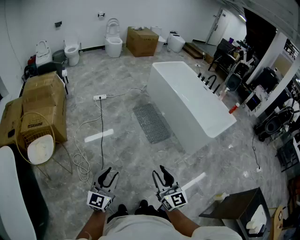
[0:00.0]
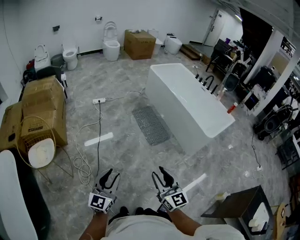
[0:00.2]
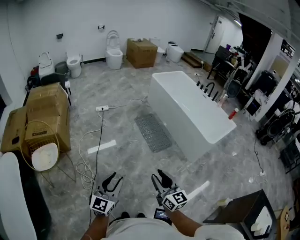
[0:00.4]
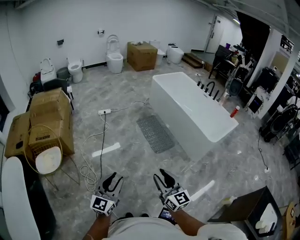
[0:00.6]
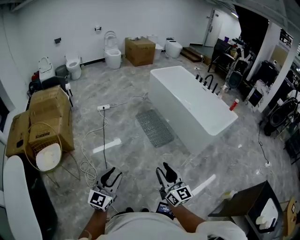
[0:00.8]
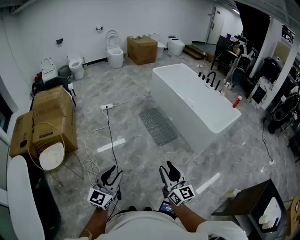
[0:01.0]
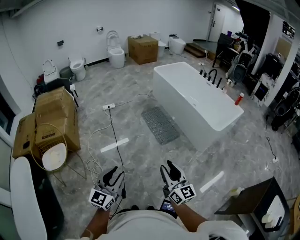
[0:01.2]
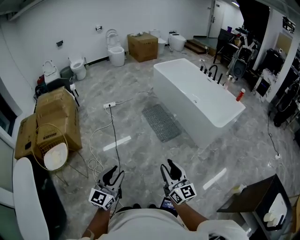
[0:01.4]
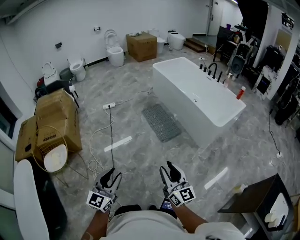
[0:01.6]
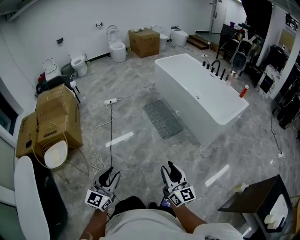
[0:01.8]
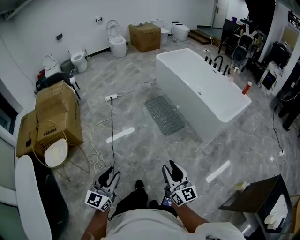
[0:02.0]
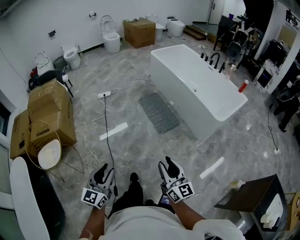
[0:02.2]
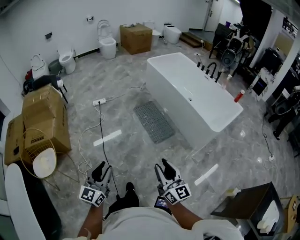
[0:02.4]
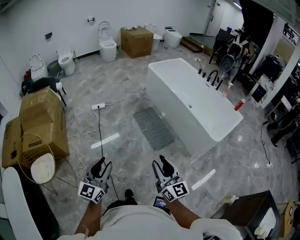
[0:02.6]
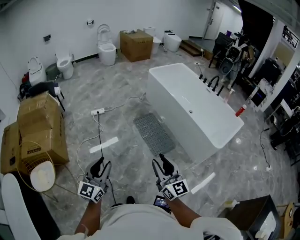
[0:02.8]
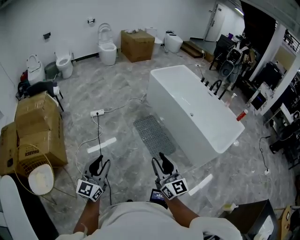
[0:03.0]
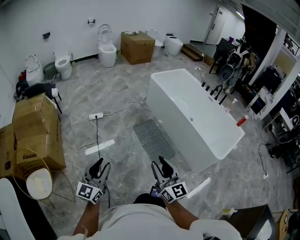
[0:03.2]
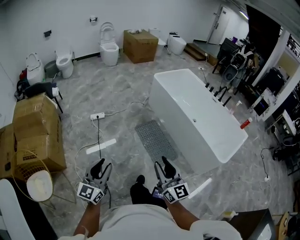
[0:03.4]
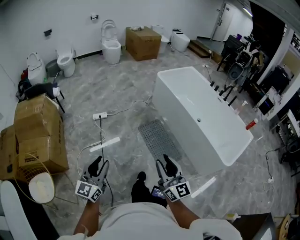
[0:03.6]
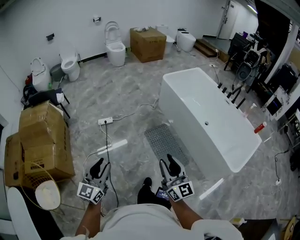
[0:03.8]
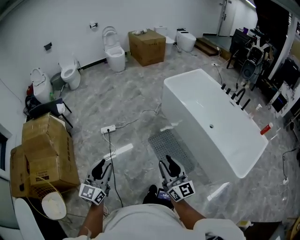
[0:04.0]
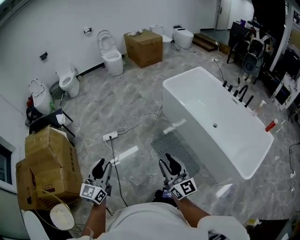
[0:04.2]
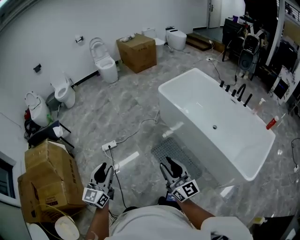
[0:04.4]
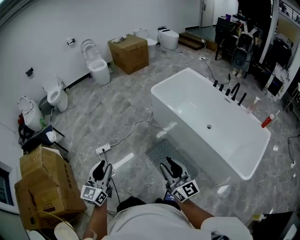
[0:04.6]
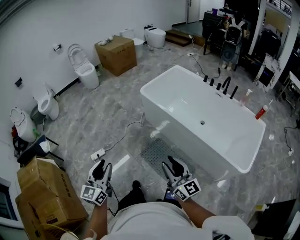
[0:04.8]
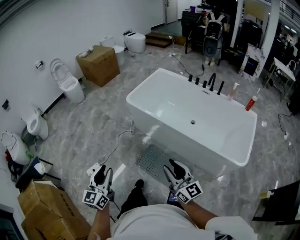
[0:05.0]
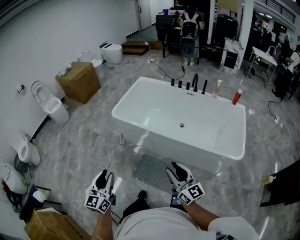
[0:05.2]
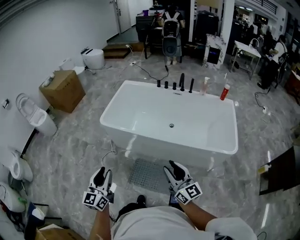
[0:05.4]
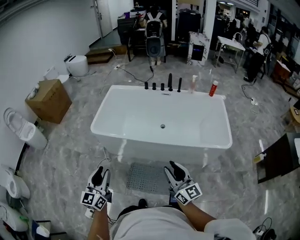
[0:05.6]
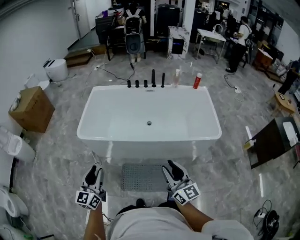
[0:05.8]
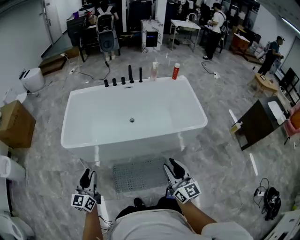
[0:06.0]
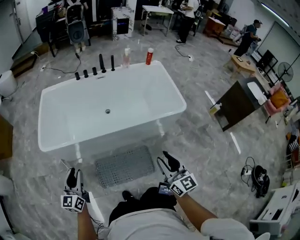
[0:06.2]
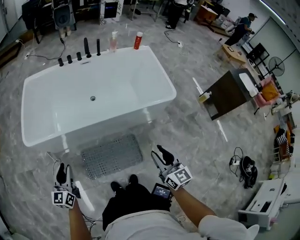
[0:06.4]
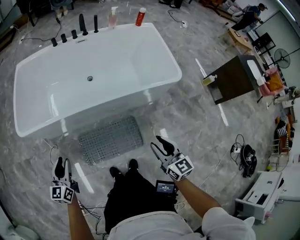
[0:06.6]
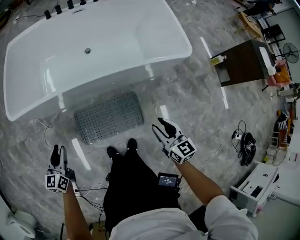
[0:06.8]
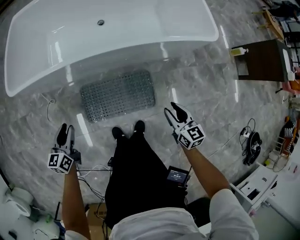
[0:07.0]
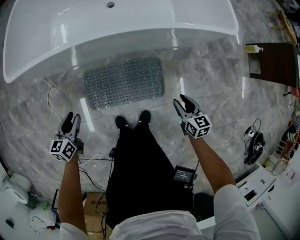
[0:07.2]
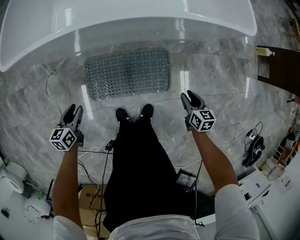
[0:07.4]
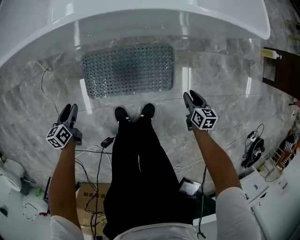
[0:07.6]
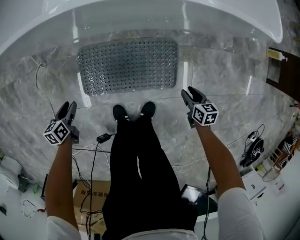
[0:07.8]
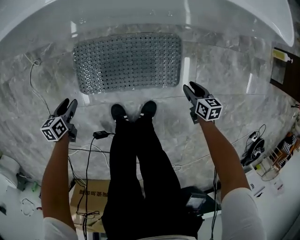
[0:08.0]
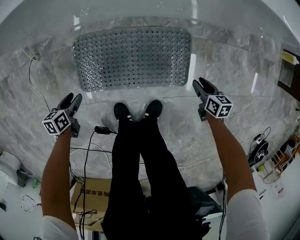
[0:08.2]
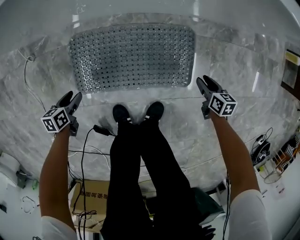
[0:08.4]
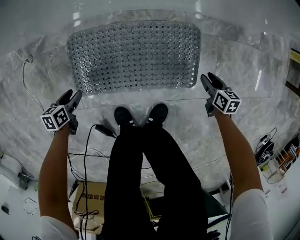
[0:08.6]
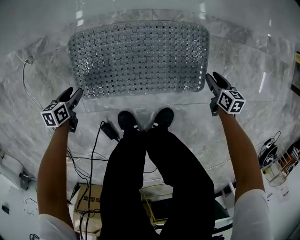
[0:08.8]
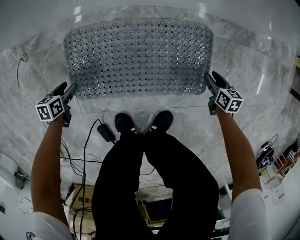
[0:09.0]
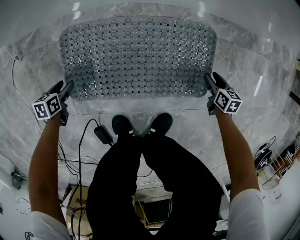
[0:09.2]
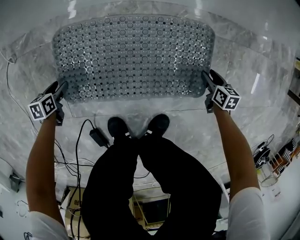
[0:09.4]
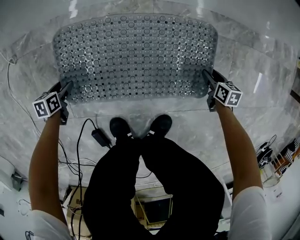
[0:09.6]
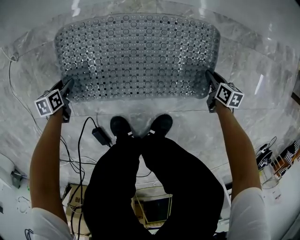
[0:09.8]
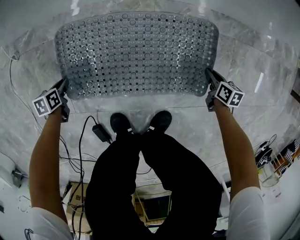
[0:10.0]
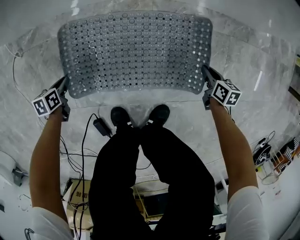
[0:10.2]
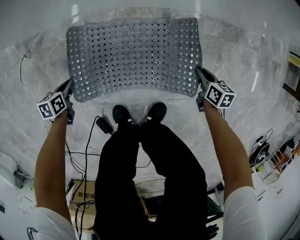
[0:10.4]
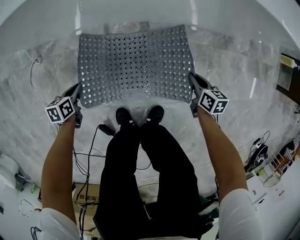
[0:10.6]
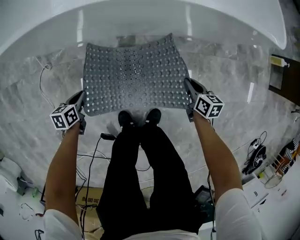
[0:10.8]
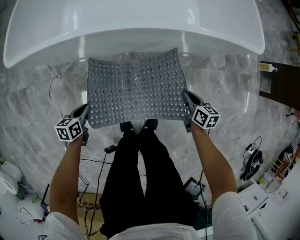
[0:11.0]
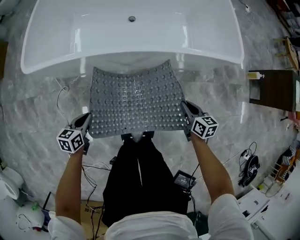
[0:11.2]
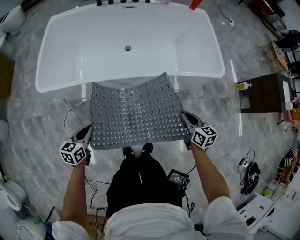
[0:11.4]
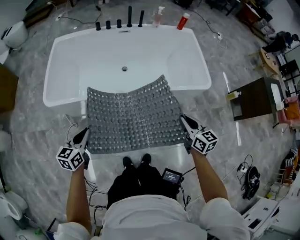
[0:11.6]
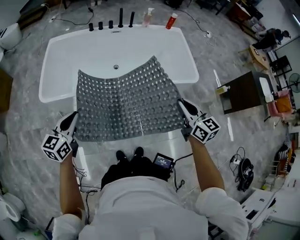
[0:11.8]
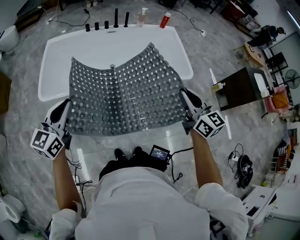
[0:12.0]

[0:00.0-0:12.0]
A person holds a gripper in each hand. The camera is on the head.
0:00.0 to 0:01.6: The left gripper is displaced to the right and backward by approximately 10 cm, while the right gripper is displaced to the right by some 10 cm.
0:01.6 to 0:03.0: Both grippers move forward, approximately 35 cm.
0:03.0 to 0:04.4: The two grippers travel together, forward, roughly 40 cm.
0:04.4 to 0:06.0: The left gripper changes place by about 50 cm, and swivels roughly 60 degrees. Meanwhile the right gripper changes place by approximately 20 cm, and turns by roughly 70 degrees.
0:06.0 to 0:07.6: The two grippers go about 60 cm downward. The right gripper points its fingers roughly 60 degrees further downward, while the left gripper points its fingers some 40 degrees further downward.
0:07.6 to 0:09.0: The grippers both shift downward by some 35 cm. The left gripper rotates roughly 20 degrees.
0:09.0 to 0:10.4: The left gripper heads upward, covering some 5 cm, and closes, while the right gripper goes roughly 10 cm upward and to the left, and closes.
0:10.4 to 0:12.0: The grippers both shift upward by approximately 1 m. The left gripper angles its fingers upward, by approximately 60 degrees. Meanwhile the right gripper tips its fingers upward by some 50 degrees.

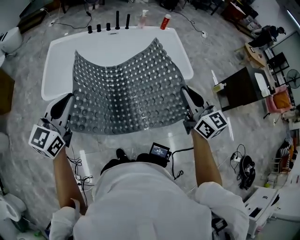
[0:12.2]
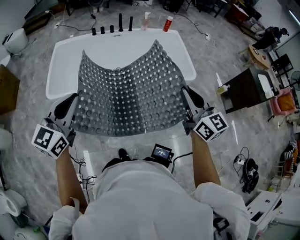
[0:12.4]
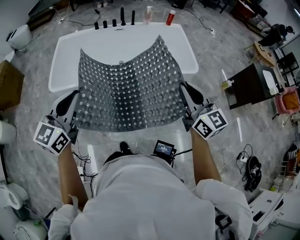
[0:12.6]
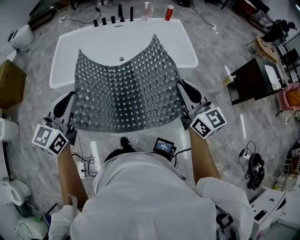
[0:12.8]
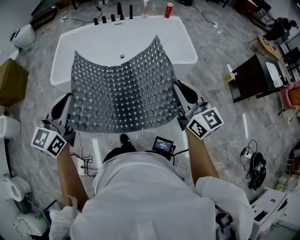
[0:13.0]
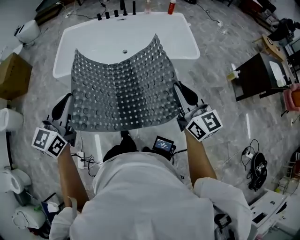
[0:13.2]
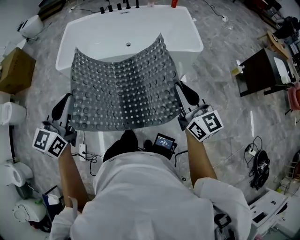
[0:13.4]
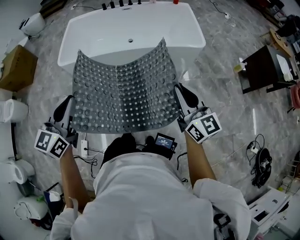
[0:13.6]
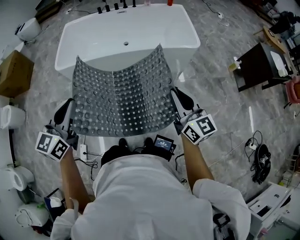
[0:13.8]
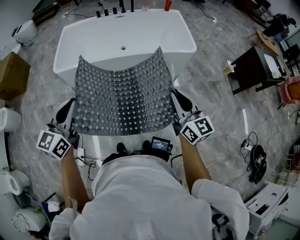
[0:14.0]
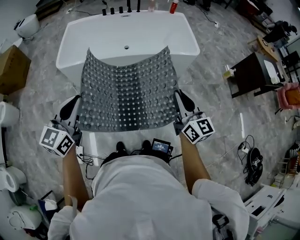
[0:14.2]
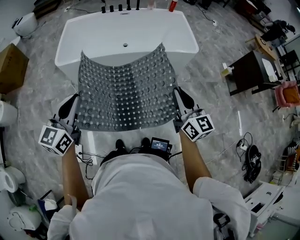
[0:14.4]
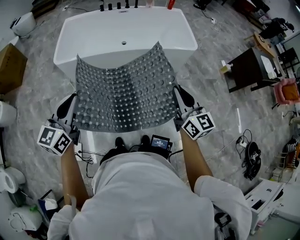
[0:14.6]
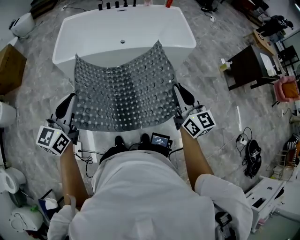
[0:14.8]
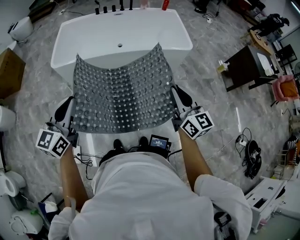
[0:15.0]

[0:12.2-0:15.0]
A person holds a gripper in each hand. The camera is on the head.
0:12.2 to 0:13.6: Both grippers move backward, approximately 20 cm.
0:13.6 to 0:15.0: The left gripper shifts roughly 5 cm to the left; the right gripper moves backward, about 5 cm.

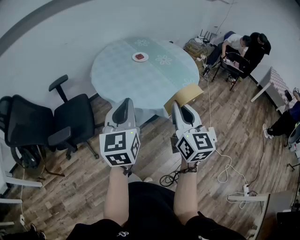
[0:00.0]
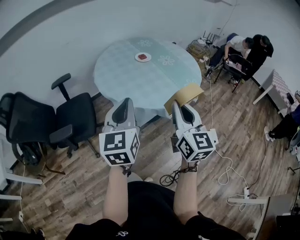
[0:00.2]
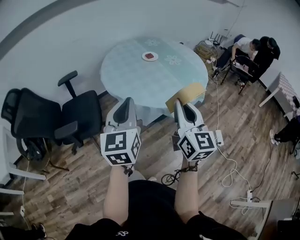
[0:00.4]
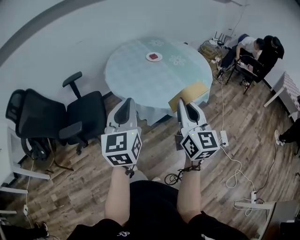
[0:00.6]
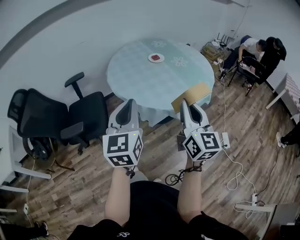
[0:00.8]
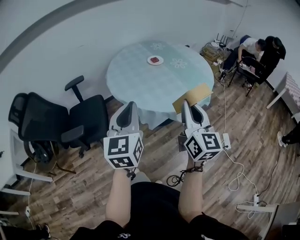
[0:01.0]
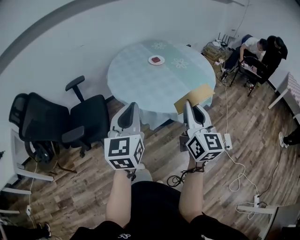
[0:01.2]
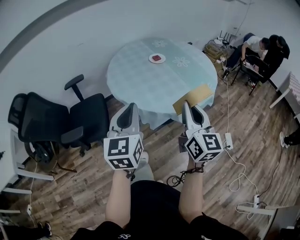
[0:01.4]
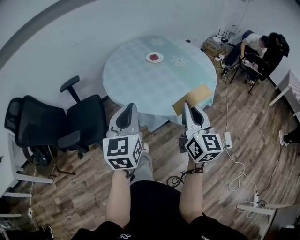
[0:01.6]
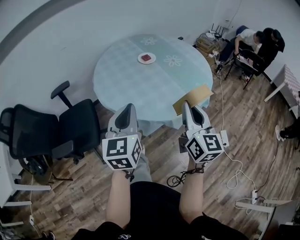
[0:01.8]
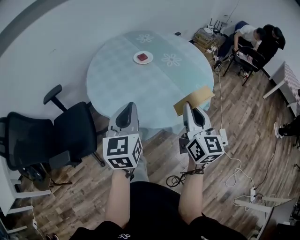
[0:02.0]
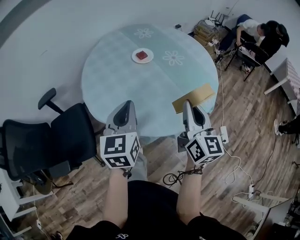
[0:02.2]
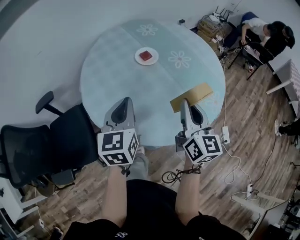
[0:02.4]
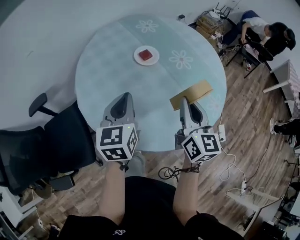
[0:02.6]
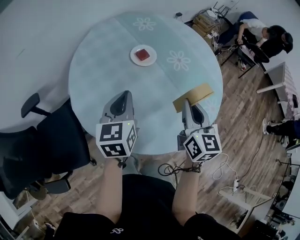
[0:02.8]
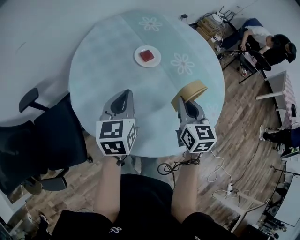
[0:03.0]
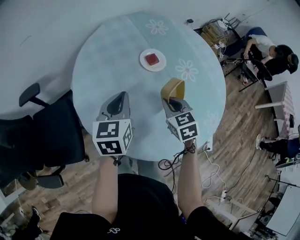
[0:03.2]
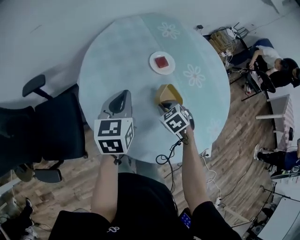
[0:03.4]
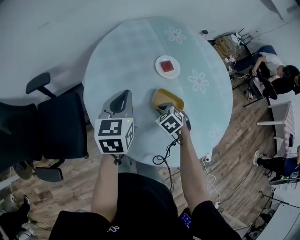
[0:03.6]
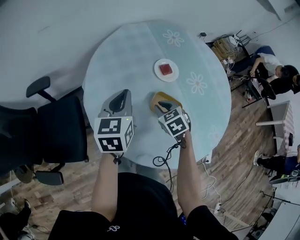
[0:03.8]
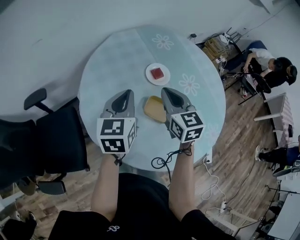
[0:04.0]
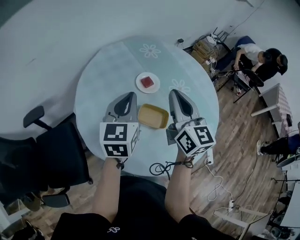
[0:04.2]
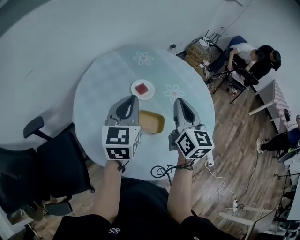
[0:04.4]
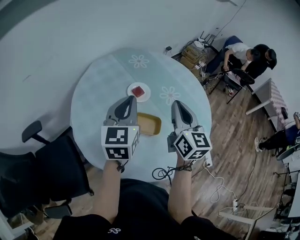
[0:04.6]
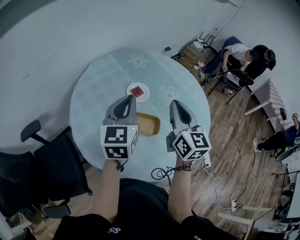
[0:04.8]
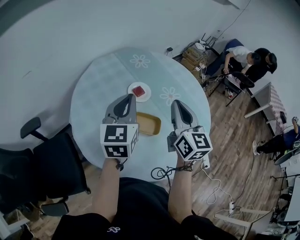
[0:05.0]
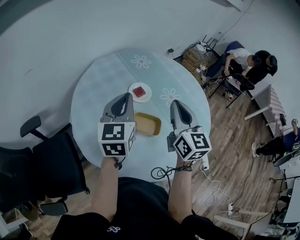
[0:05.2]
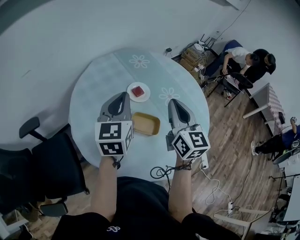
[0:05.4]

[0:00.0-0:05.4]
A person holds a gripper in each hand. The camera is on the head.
0:00.0 to 0:01.4: The right gripper moves some 5 cm.
0:01.4 to 0:02.8: The two grippers travel together, forward, some 50 cm. The right gripper changes its angle by about 20 degrees. Meanwhile the left gripper turns by about 20 degrees.
0:02.8 to 0:04.0: The left gripper heads forward and to the left, covering about 10 cm; the right gripper travels forward and to the left by approximately 20 cm, moves some 25 cm downward and comes back, and turns by some 30 degrees.
0:04.0 to 0:05.4: The right gripper heads upward and to the right, covering roughly 15 cm, and changes its angle by some 20 degrees, while the left gripper goes some 10 cm upward.

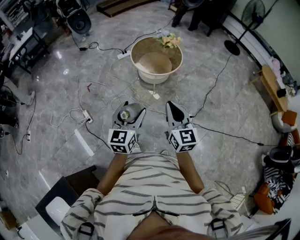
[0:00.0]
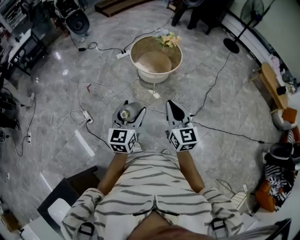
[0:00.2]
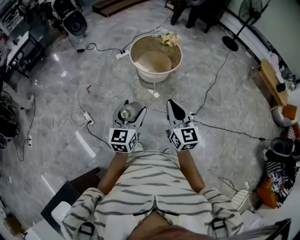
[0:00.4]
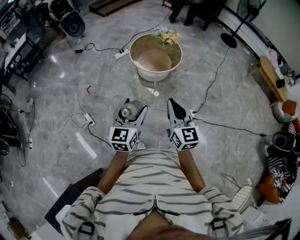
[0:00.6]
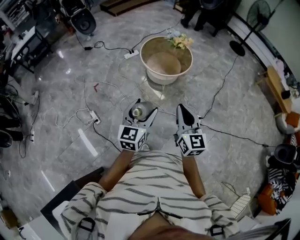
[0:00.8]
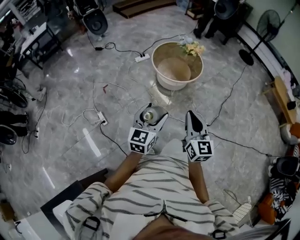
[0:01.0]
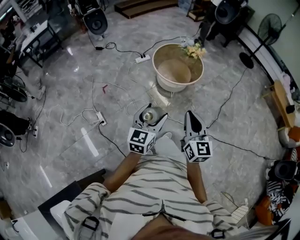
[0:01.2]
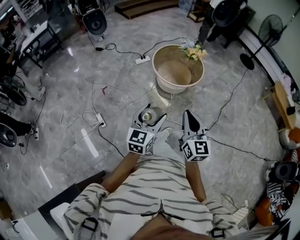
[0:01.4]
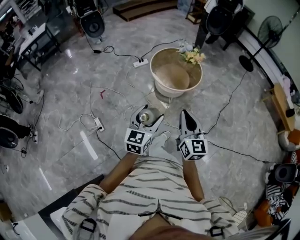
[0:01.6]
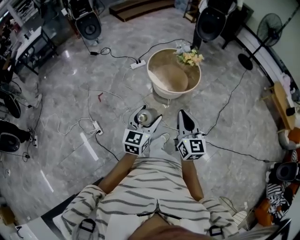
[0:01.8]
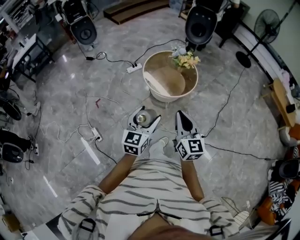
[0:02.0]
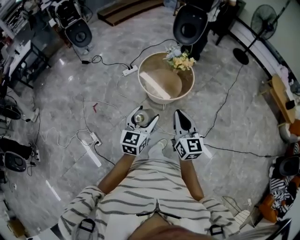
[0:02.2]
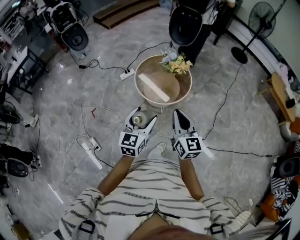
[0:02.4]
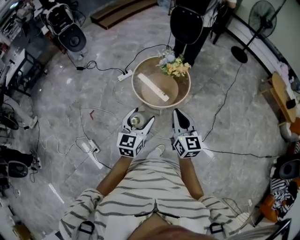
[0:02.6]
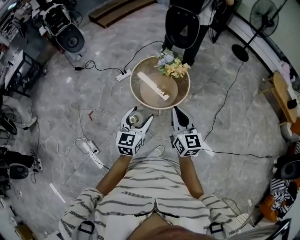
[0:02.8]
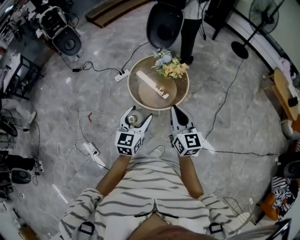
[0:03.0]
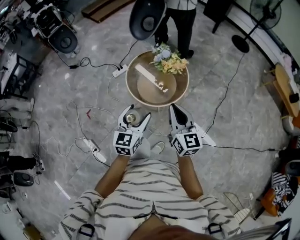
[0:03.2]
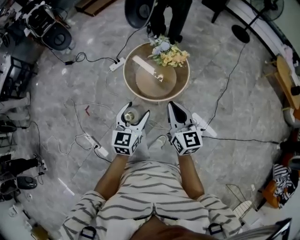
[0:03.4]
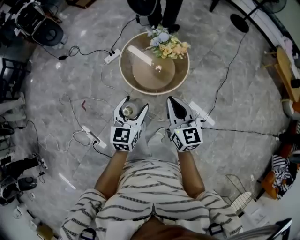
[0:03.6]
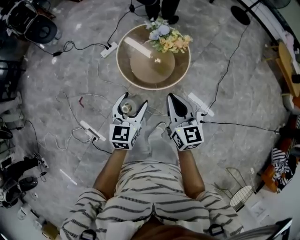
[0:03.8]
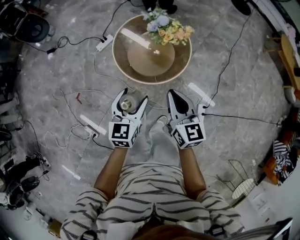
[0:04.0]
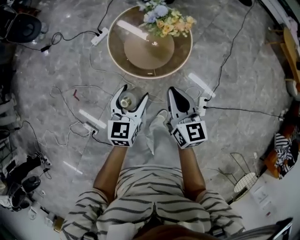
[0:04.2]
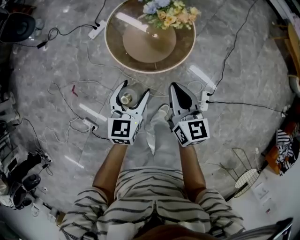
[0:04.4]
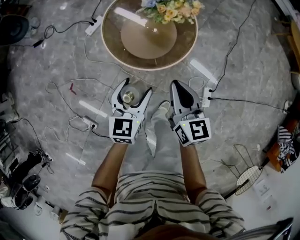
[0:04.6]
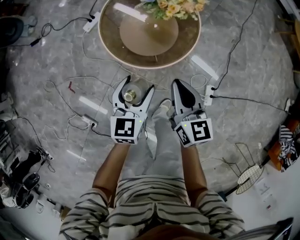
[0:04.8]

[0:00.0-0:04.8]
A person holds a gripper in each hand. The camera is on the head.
0:00.0 to 0:01.6: Both grippers travel together forward and to the left, roughly 10 cm.
0:01.6 to 0:03.2: The grippers both shift forward by about 30 cm.
0:03.2 to 0:04.8: The left gripper is displaced downward and forward by some 25 cm, while the right gripper travels downward by roughly 25 cm.
